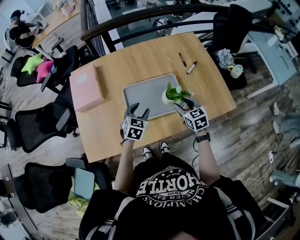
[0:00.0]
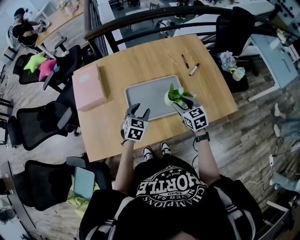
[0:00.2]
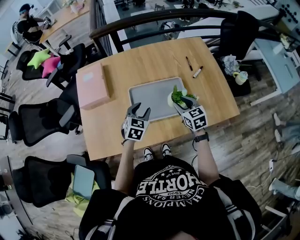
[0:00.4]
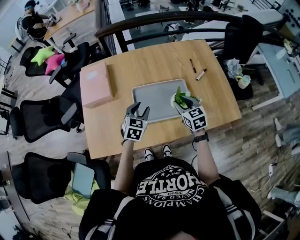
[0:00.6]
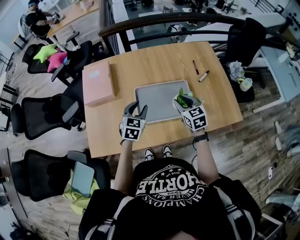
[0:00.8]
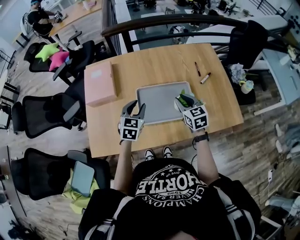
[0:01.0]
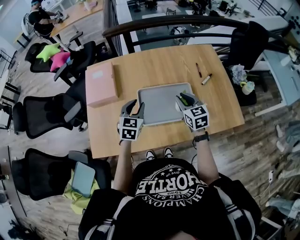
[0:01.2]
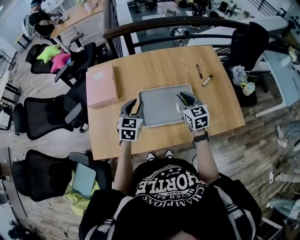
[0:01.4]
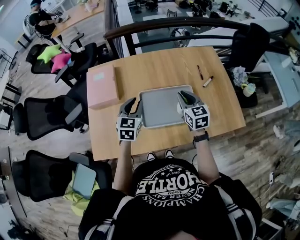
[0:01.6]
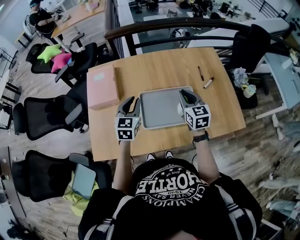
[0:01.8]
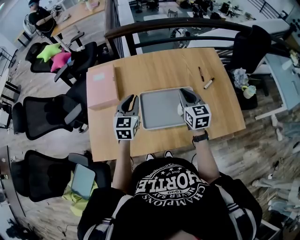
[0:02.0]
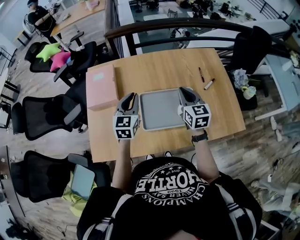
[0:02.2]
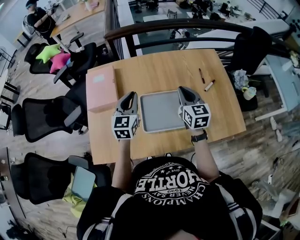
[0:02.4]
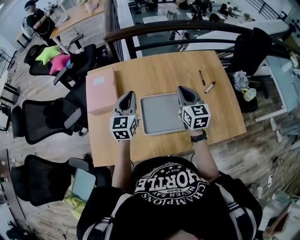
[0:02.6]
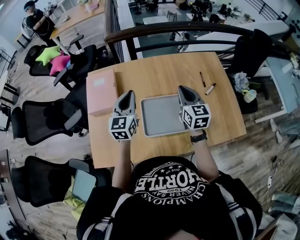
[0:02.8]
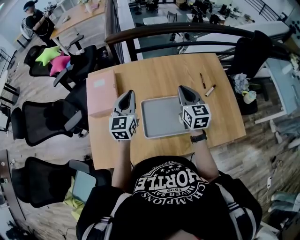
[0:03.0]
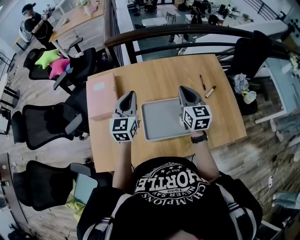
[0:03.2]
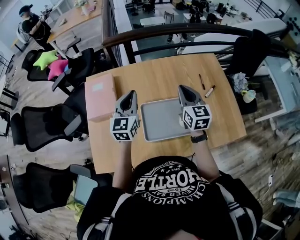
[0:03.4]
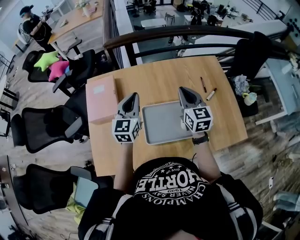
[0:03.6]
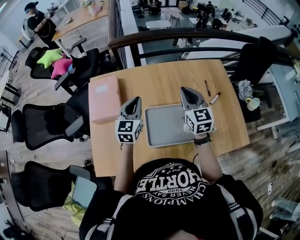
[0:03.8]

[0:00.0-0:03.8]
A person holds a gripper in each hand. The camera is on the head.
0:00.0 to 0:01.2: The left gripper goes approximately 10 cm to the left and upward. The right gripper goes approximately 10 cm to the left, upward and forward.
0:01.2 to 0:02.6: The left gripper heads upward and forward, covering roughly 10 cm, and swivels about 20 degrees. The right gripper heads forward and upward, covering some 10 cm.
0:02.6 to 0:03.8: The two grippers go roughly 5 cm forward.

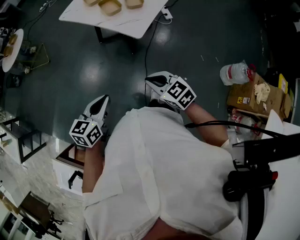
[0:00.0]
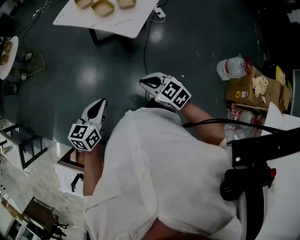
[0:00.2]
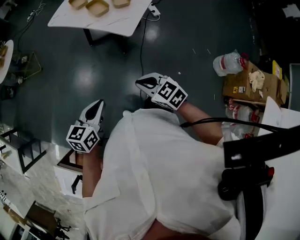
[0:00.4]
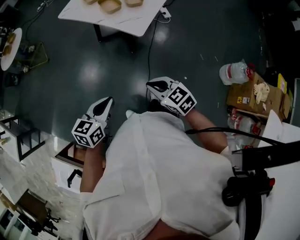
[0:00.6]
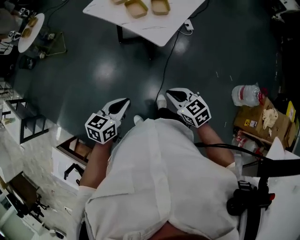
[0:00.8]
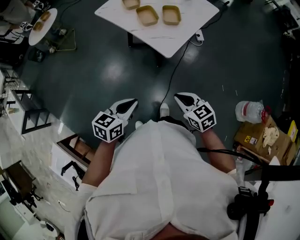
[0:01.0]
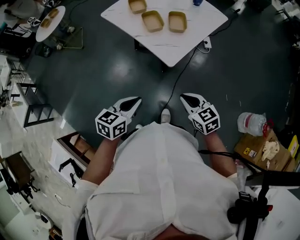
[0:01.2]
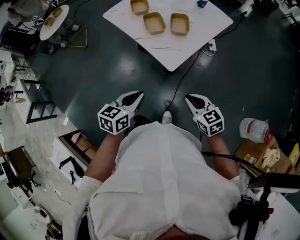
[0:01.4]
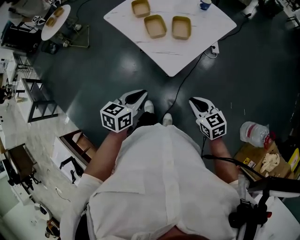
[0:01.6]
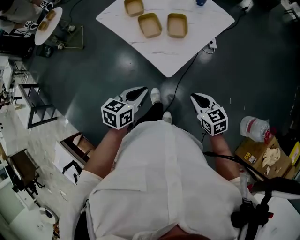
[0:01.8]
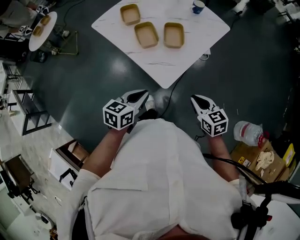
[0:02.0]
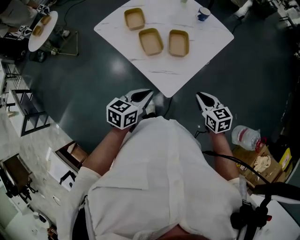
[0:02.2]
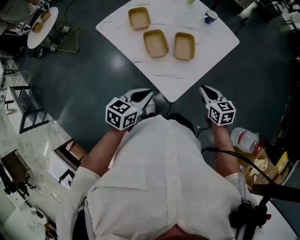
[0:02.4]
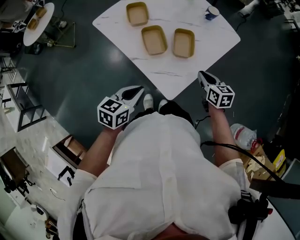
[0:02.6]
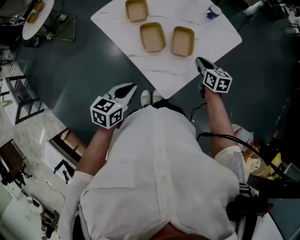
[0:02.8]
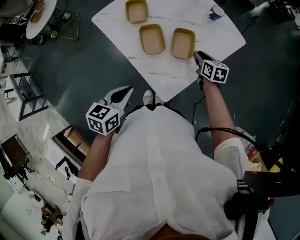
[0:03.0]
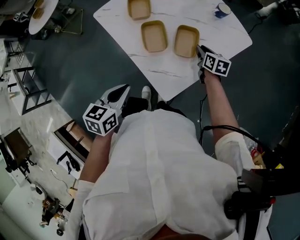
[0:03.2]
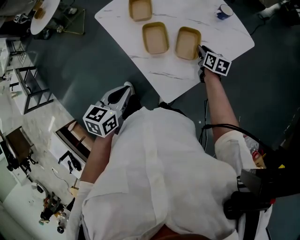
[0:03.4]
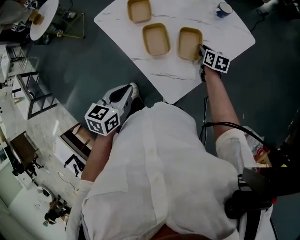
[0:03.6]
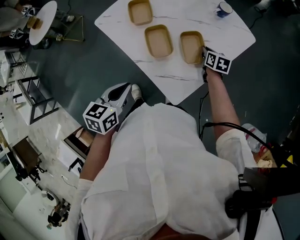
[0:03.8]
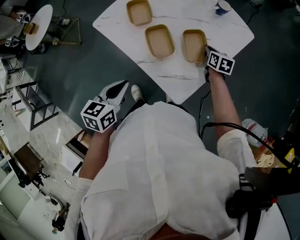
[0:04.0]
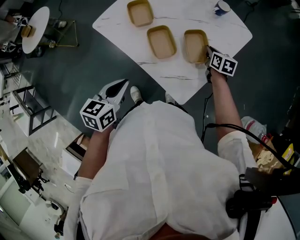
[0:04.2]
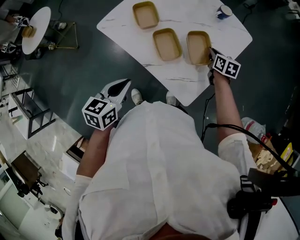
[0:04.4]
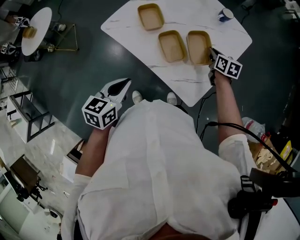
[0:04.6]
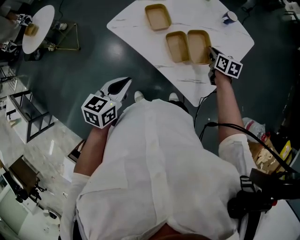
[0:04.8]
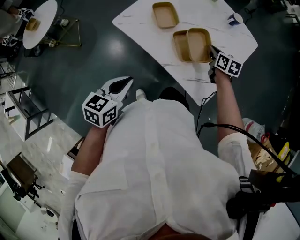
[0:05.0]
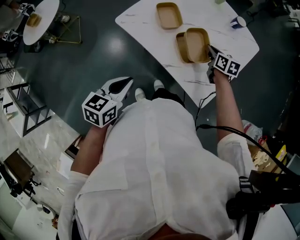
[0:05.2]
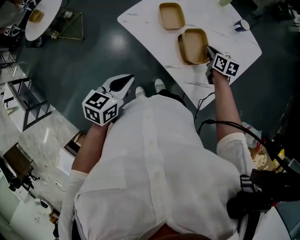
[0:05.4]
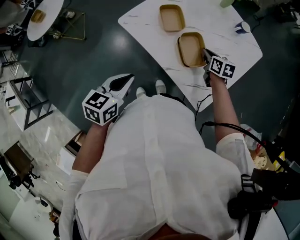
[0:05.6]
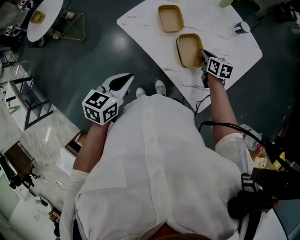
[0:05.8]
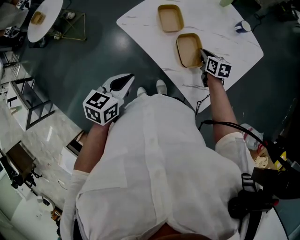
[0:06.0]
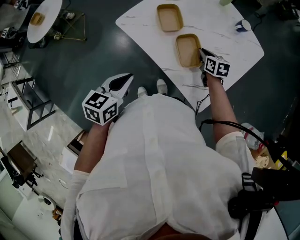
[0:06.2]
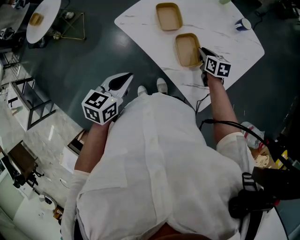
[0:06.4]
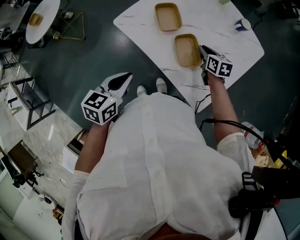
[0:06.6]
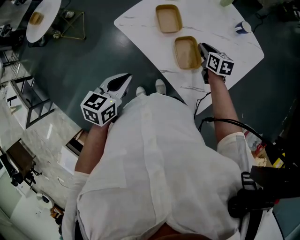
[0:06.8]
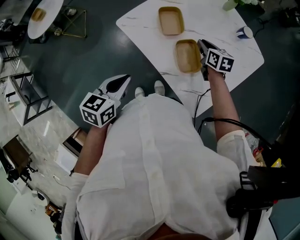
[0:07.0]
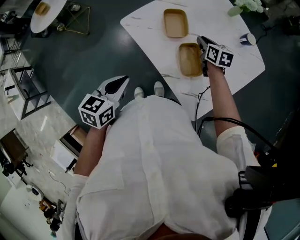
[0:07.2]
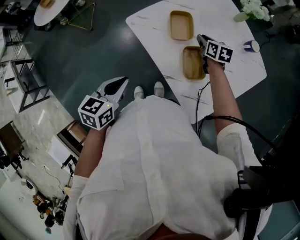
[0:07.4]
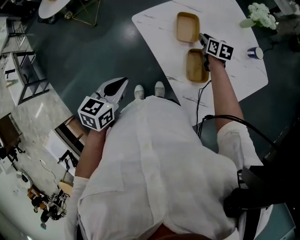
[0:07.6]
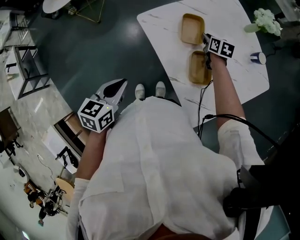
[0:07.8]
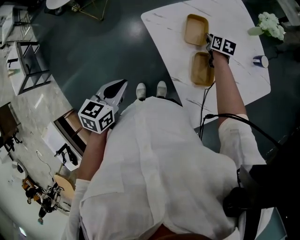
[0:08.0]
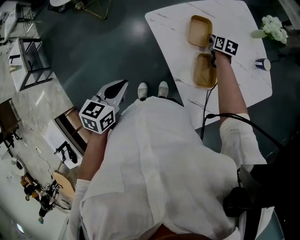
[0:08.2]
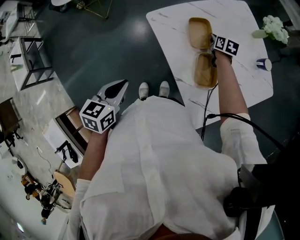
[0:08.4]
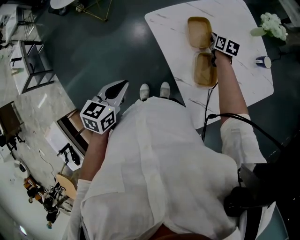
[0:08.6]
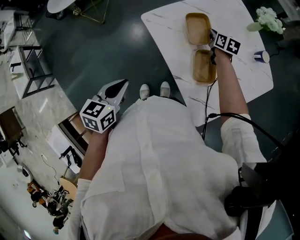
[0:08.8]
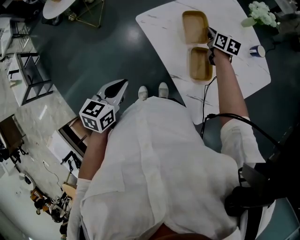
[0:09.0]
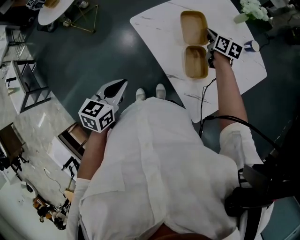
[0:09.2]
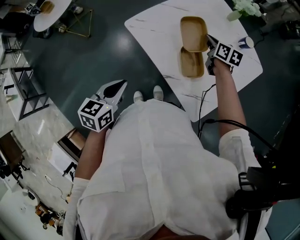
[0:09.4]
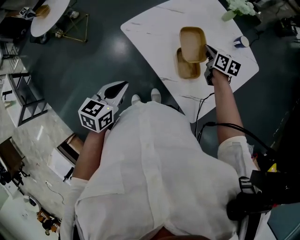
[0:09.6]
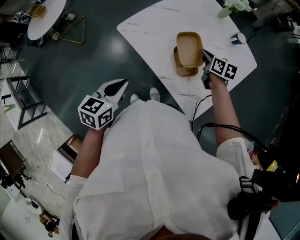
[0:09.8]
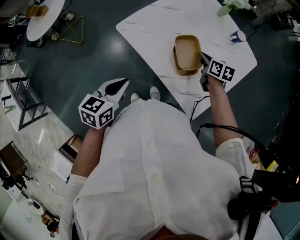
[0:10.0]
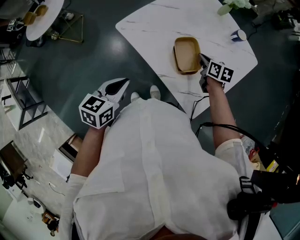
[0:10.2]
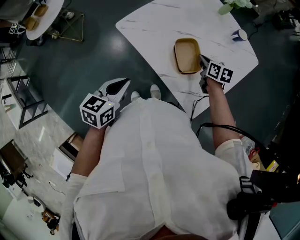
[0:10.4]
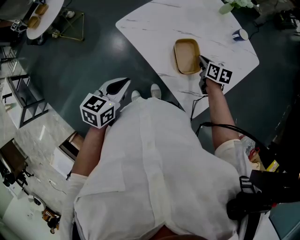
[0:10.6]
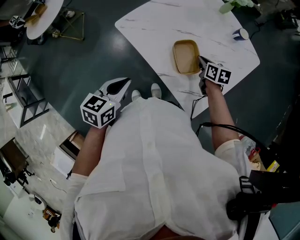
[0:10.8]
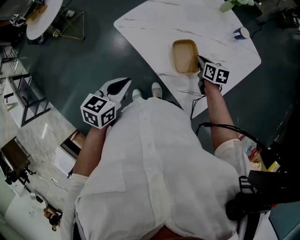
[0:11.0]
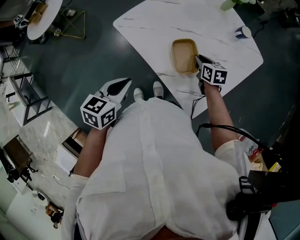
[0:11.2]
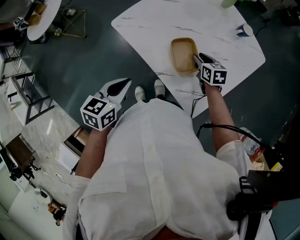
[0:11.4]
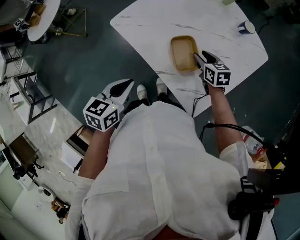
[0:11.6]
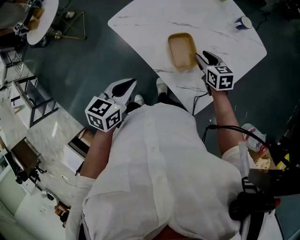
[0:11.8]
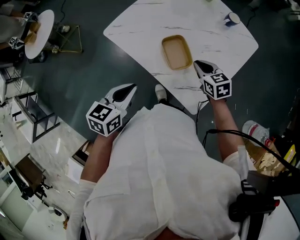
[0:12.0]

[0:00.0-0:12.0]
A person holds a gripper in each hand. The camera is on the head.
0:00.0 to 0:01.6: The left gripper is displaced forward and to the right by about 20 cm. The right gripper goes some 20 cm to the right and forward.
0:01.6 to 0:03.0: The left gripper is displaced forward by roughly 15 cm, while the right gripper moves forward, approximately 40 cm, and swivels approximately 20 degrees.
0:03.0 to 0:04.4: The left gripper is displaced to the left and forward by roughly 10 cm.
0:04.4 to 0:06.0: The left gripper shifts about 10 cm to the left. Meanwhile the right gripper is displaced to the left by approximately 15 cm.
0:06.0 to 0:07.6: The right gripper heads forward and to the left, covering some 15 cm.
0:07.6 to 0:09.0: There are only small adjustments of the grippers.
0:09.0 to 0:10.4: The right gripper heads backward and to the right, covering about 20 cm. The left gripper heads to the right, covering roughly 5 cm.
0:10.4 to 0:12.0: The left gripper moves to the right, about 5 cm. The right gripper heads backward, covering some 10 cm, turns by approximately 20 degrees, and opens, then closes once more.

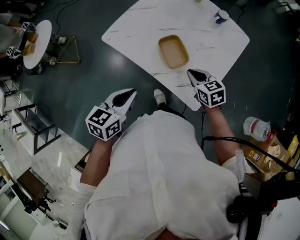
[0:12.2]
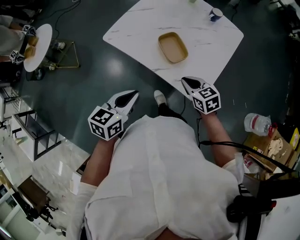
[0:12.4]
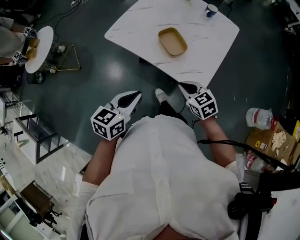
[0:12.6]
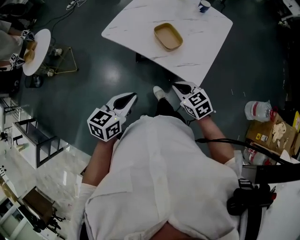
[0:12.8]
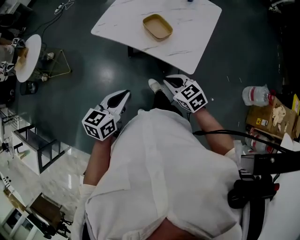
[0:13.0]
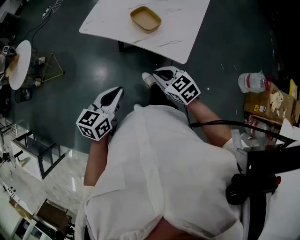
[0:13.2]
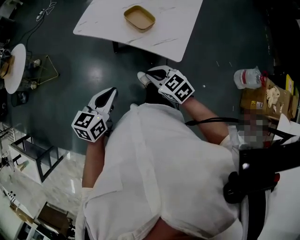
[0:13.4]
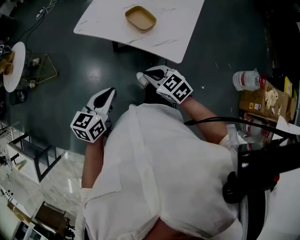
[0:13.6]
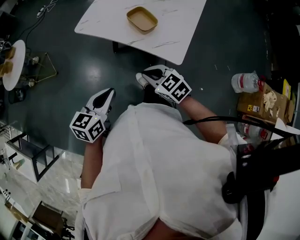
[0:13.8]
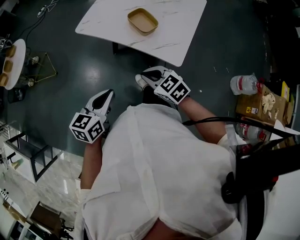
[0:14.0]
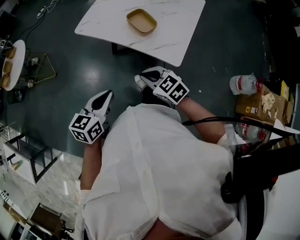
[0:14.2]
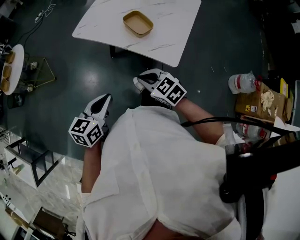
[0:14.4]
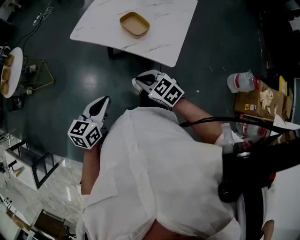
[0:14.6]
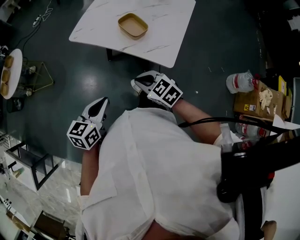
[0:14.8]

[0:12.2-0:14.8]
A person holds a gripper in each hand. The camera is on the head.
0:12.2 to 0:13.4: The left gripper heads backward, covering about 15 cm, while the right gripper shifts roughly 25 cm backward and to the left.
0:13.4 to 0:14.8: There are only small adjustments of the grippers.

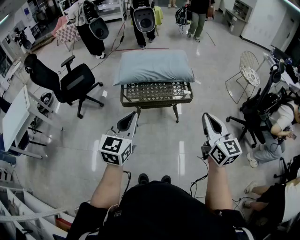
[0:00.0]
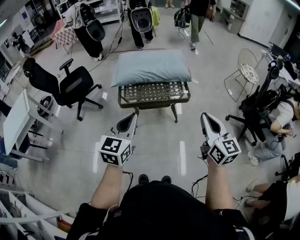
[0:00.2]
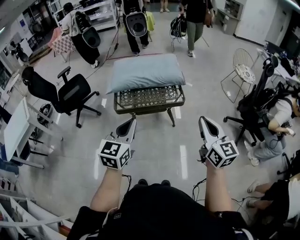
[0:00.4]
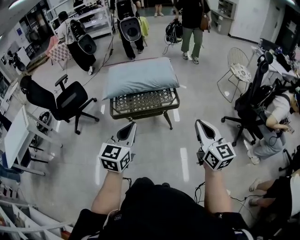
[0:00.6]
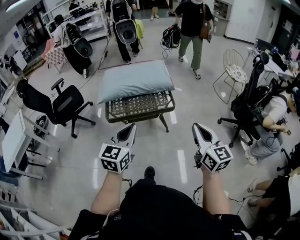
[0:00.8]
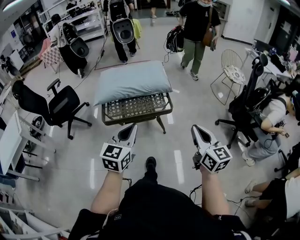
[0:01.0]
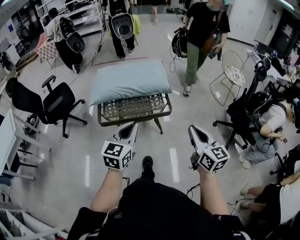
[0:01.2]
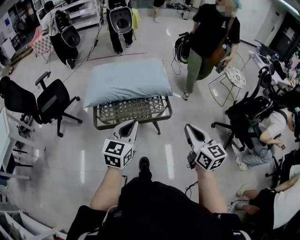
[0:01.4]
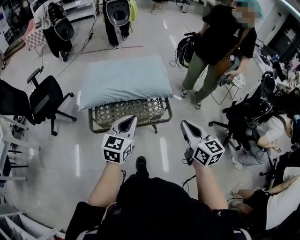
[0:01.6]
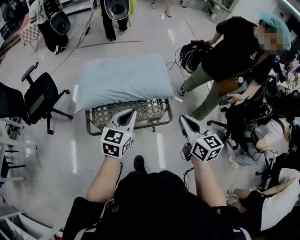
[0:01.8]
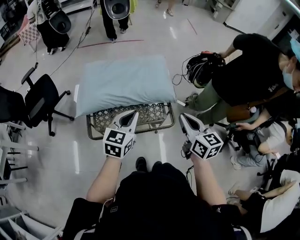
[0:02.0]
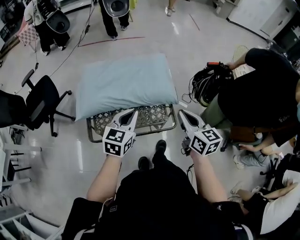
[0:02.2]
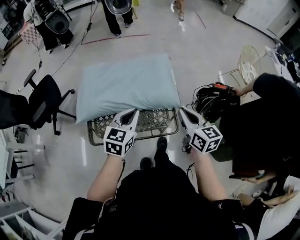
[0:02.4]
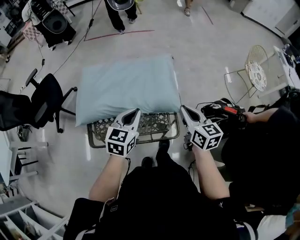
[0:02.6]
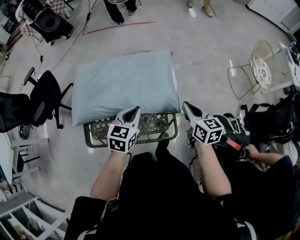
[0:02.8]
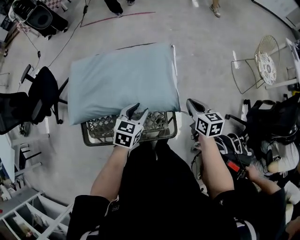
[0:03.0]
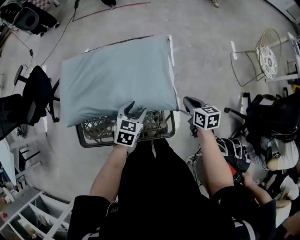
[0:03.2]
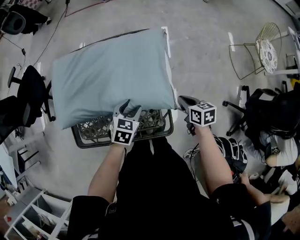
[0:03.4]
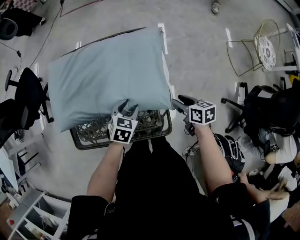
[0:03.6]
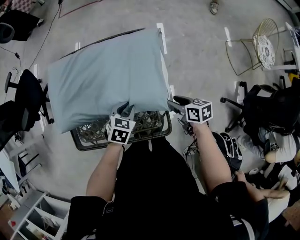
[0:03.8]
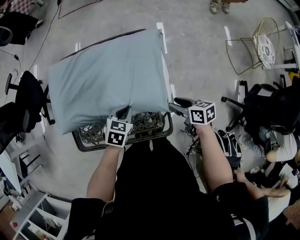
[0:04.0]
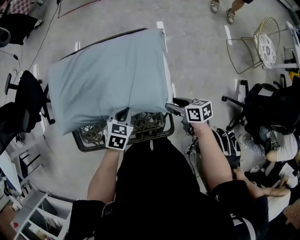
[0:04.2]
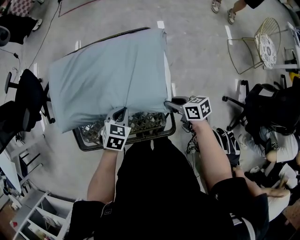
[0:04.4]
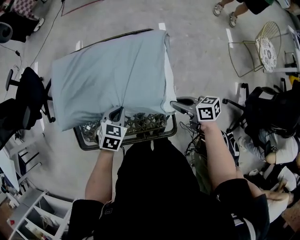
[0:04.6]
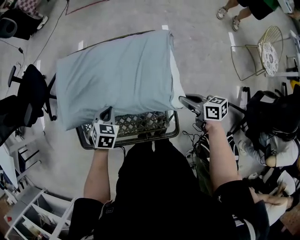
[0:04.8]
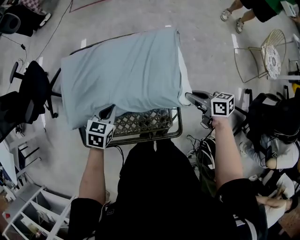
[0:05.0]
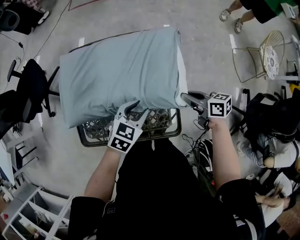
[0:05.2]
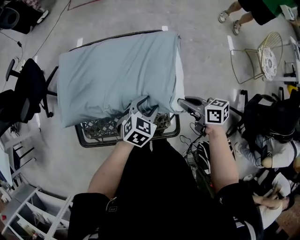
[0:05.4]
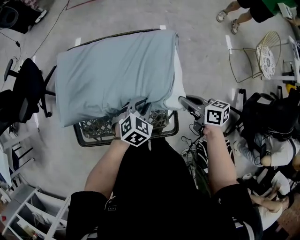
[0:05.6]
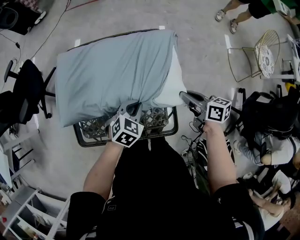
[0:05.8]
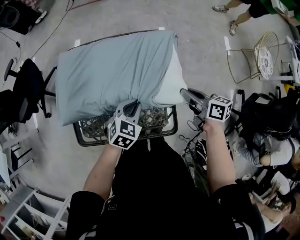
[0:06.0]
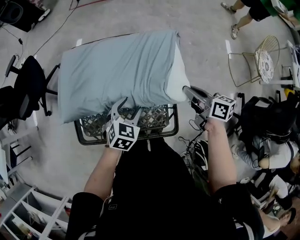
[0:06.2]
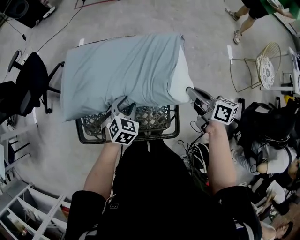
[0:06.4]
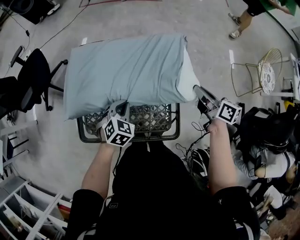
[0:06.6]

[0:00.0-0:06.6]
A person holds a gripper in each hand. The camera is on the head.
0:00.0 to 0:01.6: The two grippers go about 25 cm forward.
0:01.6 to 0:03.2: The grippers both shift forward and downward by some 40 cm. The left gripper tips its fingers downward by approximately 30 degrees, and opens, while the right gripper rotates some 30 degrees.
0:03.2 to 0:05.0: The left gripper heads to the left, covering roughly 15 cm, and closes; the right gripper reaches some 10 cm to the left, then returns, turns by some 30 degrees, and opens, then closes once more.
0:05.0 to 0:06.6: The right gripper goes about 10 cm upward and forward, and rotates roughly 20 degrees. The left gripper goes to the right and returns, some 15 cm each way, rotates some 20 degrees, and opens and closes again.
